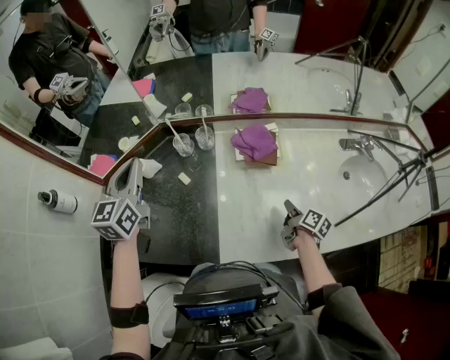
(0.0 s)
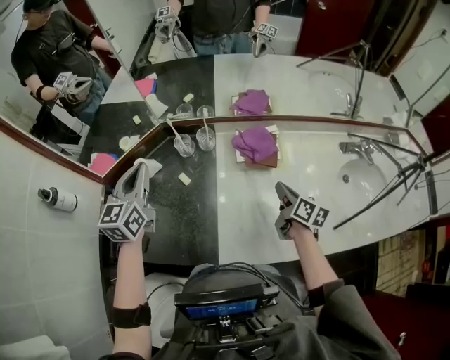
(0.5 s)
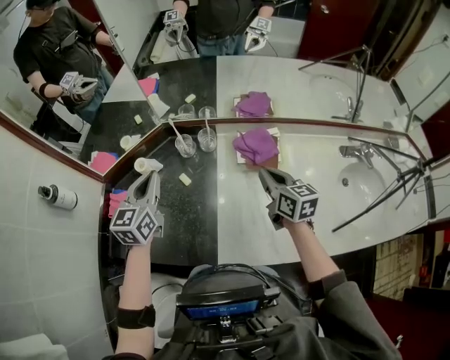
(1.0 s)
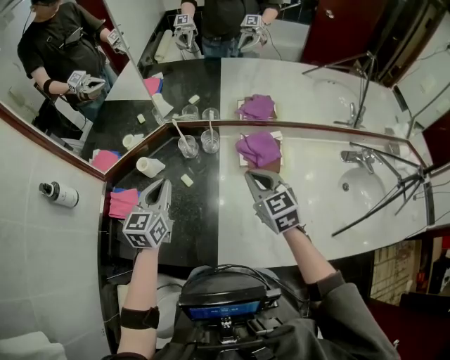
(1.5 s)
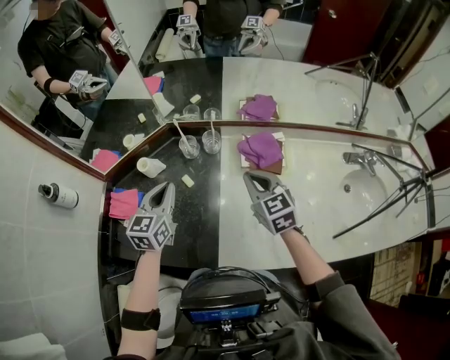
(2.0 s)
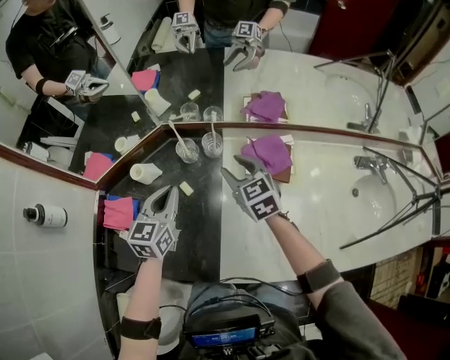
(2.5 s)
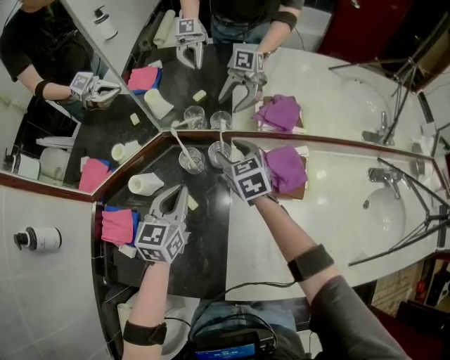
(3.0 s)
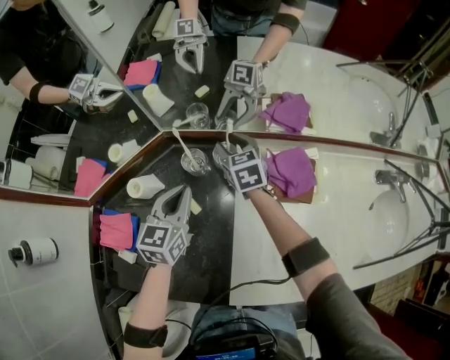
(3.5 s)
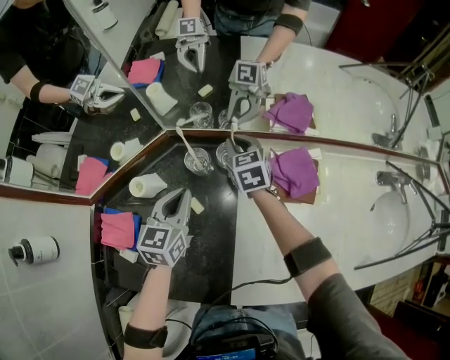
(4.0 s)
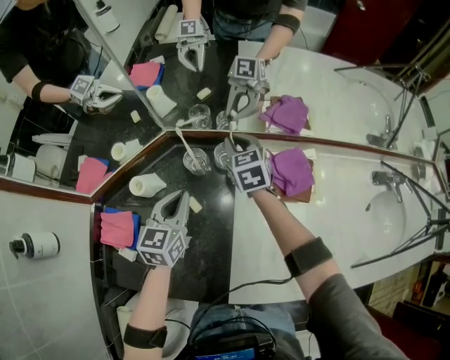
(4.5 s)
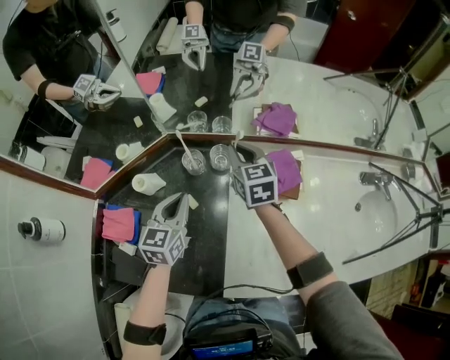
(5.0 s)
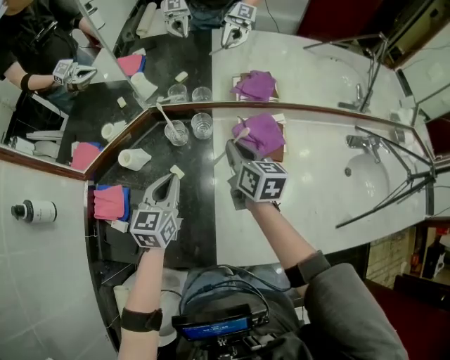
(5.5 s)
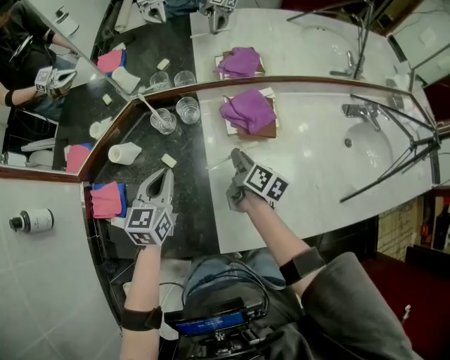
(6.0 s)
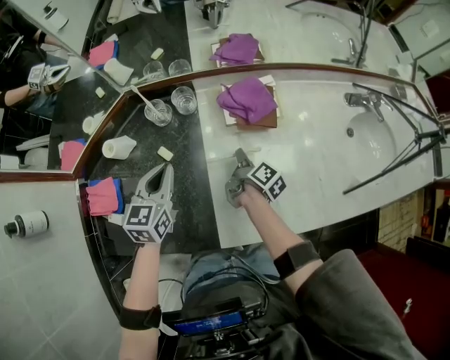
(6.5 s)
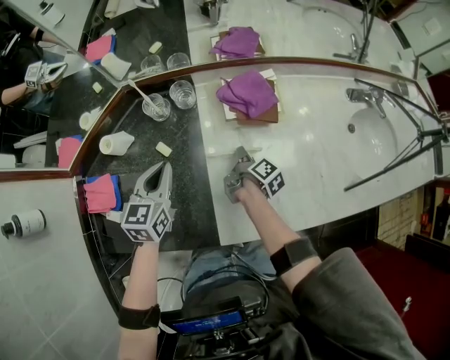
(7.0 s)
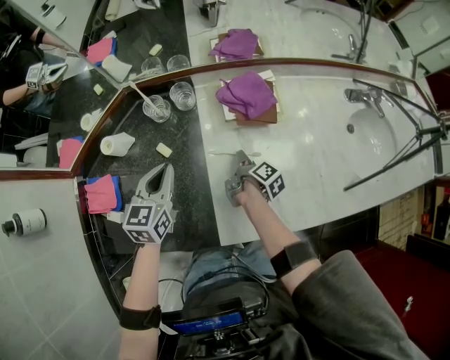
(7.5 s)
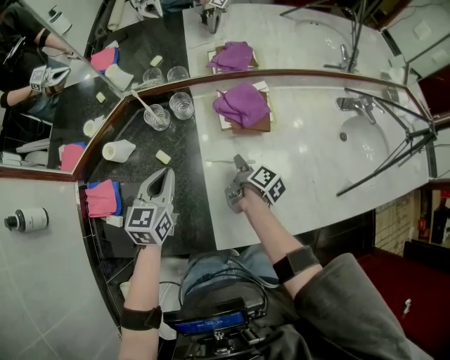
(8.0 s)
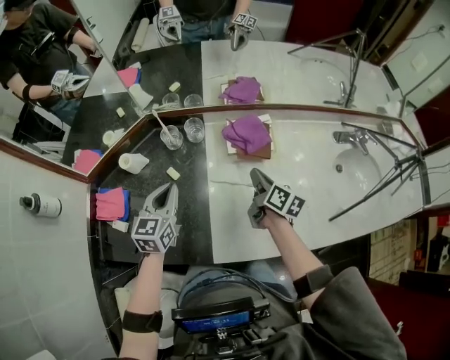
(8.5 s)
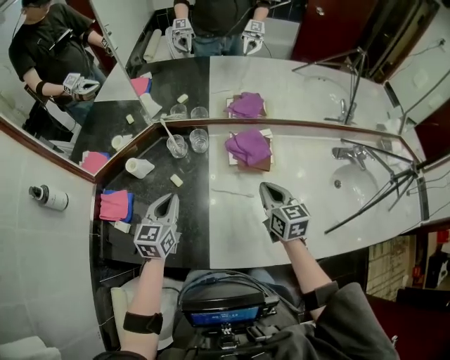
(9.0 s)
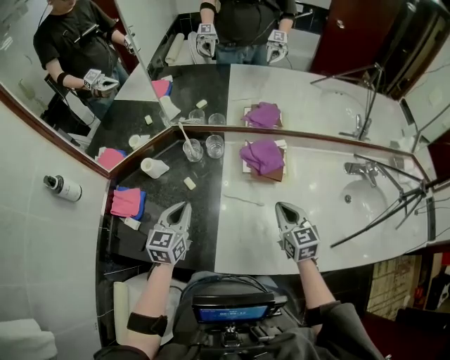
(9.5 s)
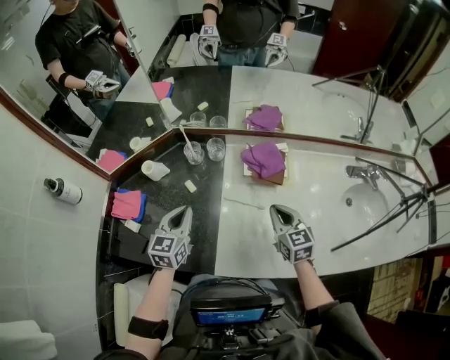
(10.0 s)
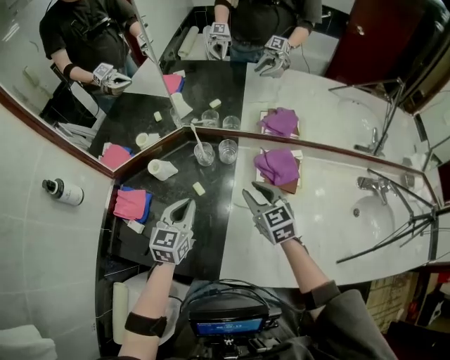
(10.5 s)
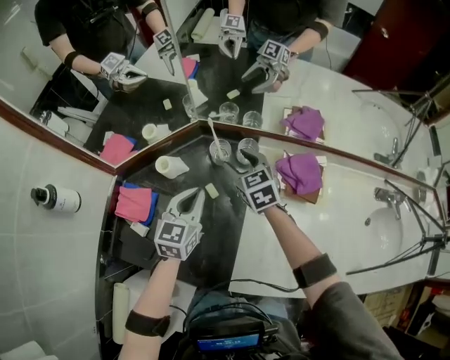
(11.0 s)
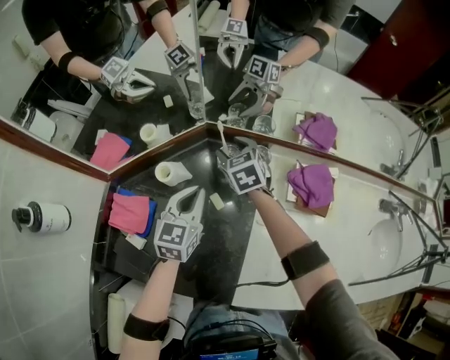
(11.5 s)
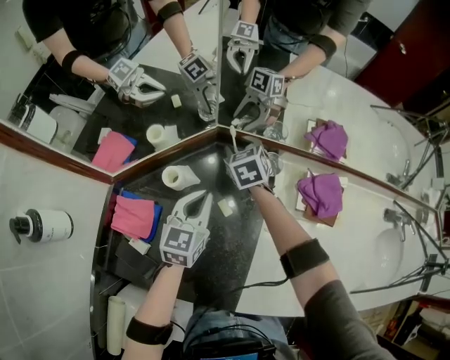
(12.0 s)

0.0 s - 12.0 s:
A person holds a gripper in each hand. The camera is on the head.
0.0 s - 2.0 s: The left gripper travels downward by approximately 10 cm, while the right gripper is displaced to the left, upward and forward by about 30 cm, and rotates around the line of its fingers by roughly 70 degrees, counterclockwise from behind.
2.0 s - 4.0 s: The right gripper travels forward and downward by roughly 30 cm, and opens, then closes once more, while the left gripper heads forward and downward, covering roughly 15 cm.
4.0 s - 6.0 s: The right gripper moves backward and to the right, roughly 25 cm, and rotates around the line of its fingers by about 70 degrees, clockwise from behind. Meanwhile the left gripper goes some 10 cm backward.
6.0 s - 8.0 s: The right gripper travels downward by about 10 cm, and turns by about 20 degrees.
8.0 s - 10.0 s: The left gripper goes approximately 5 cm backward. The right gripper goes about 15 cm upward, and rotates around the line of its fingers by approximately 80 degrees, counterclockwise from behind.
10.0 s - 12.0 s: The right gripper moves forward and to the left, some 50 cm, swivels roughly 20 degrees, and opens, while the left gripper shifts roughly 20 cm forward, downward and to the left.

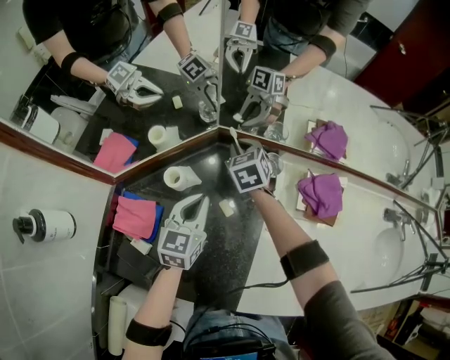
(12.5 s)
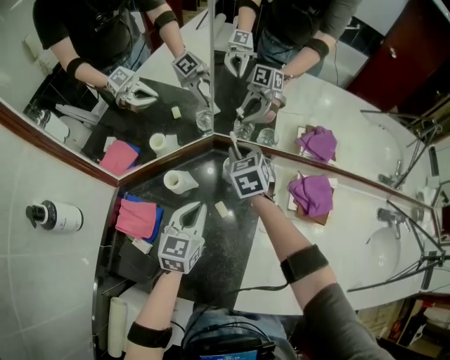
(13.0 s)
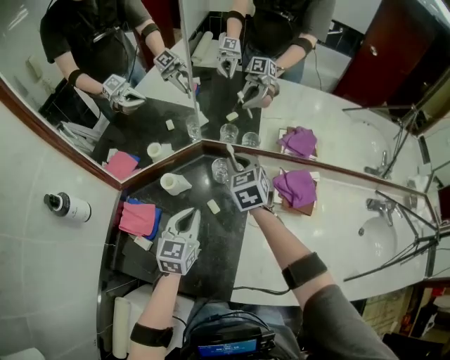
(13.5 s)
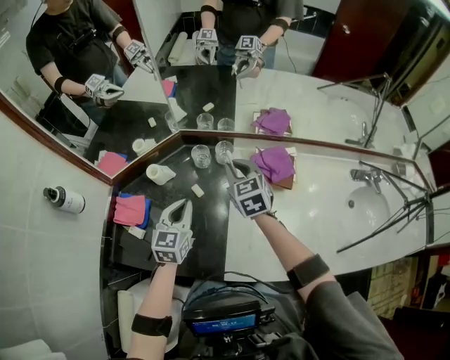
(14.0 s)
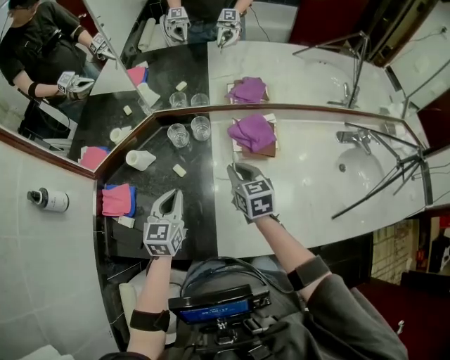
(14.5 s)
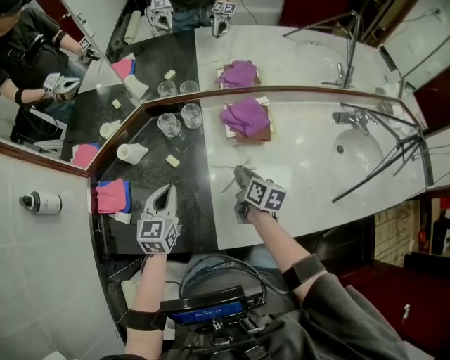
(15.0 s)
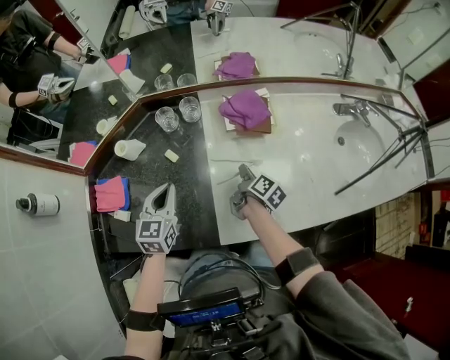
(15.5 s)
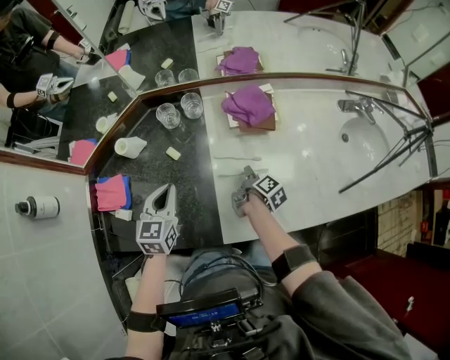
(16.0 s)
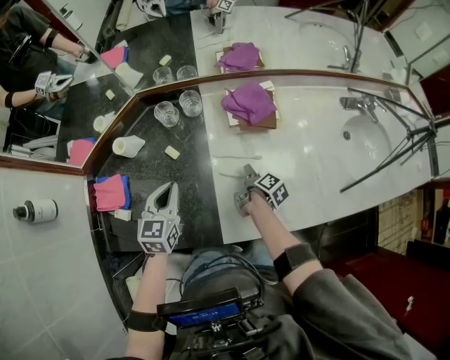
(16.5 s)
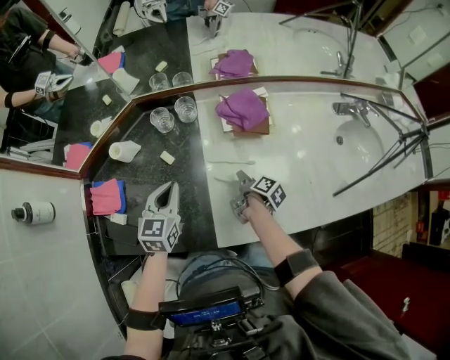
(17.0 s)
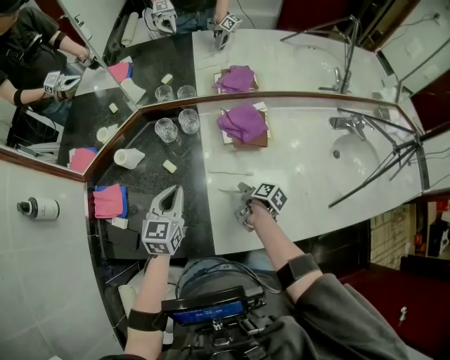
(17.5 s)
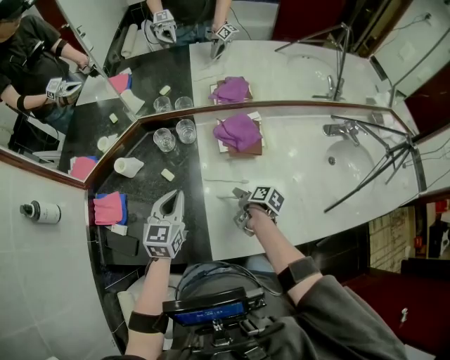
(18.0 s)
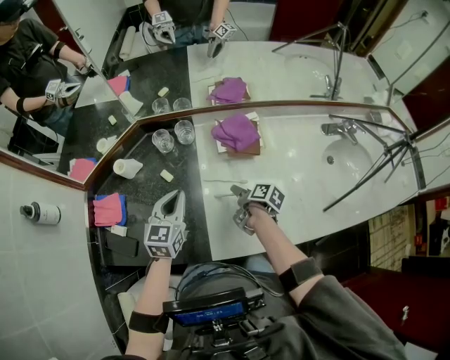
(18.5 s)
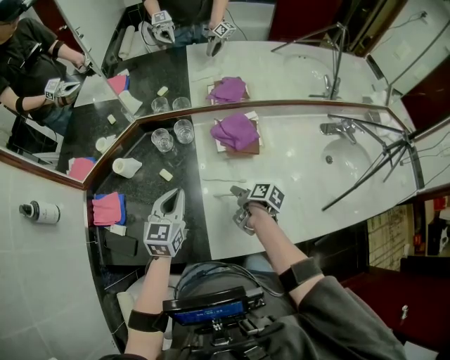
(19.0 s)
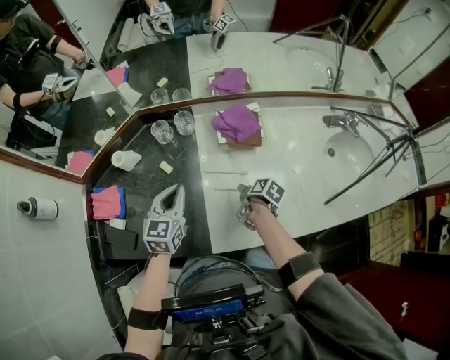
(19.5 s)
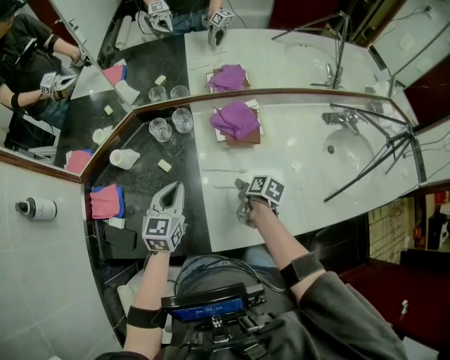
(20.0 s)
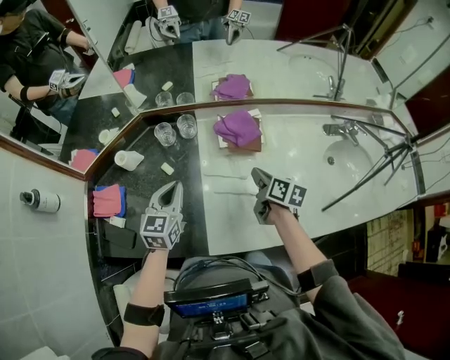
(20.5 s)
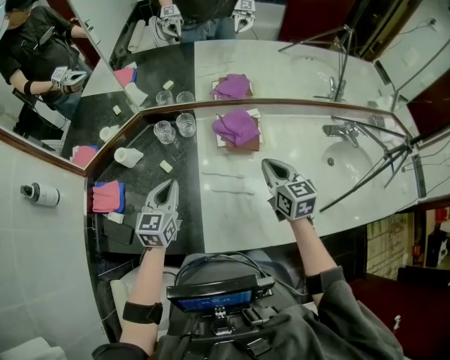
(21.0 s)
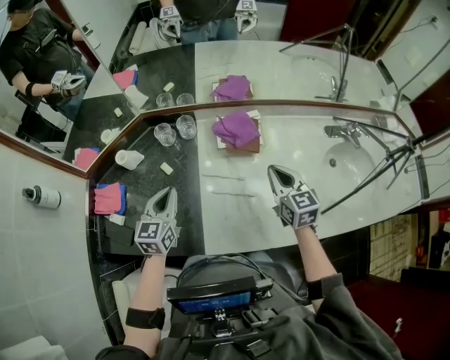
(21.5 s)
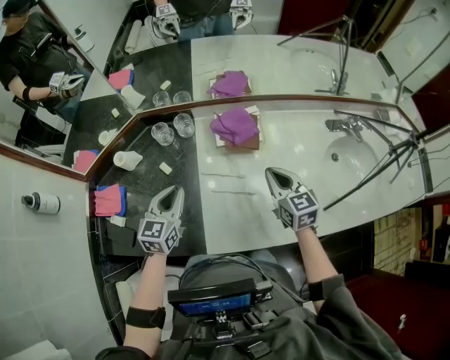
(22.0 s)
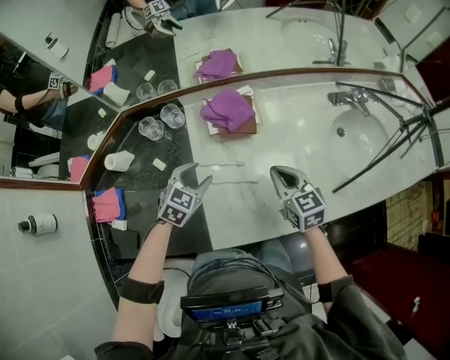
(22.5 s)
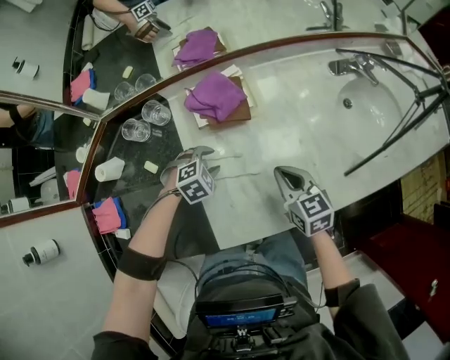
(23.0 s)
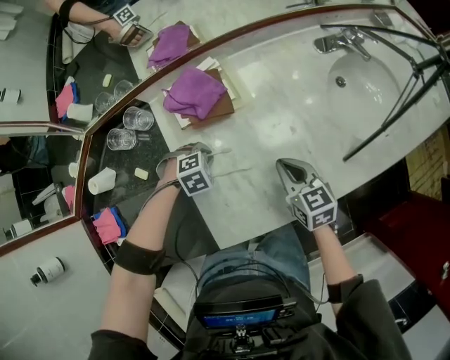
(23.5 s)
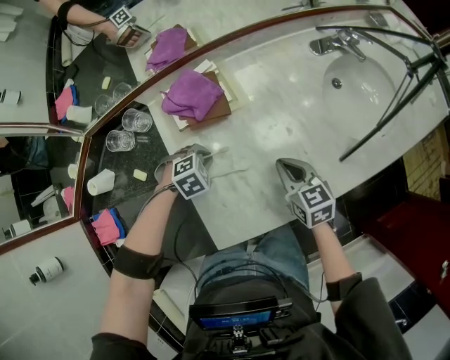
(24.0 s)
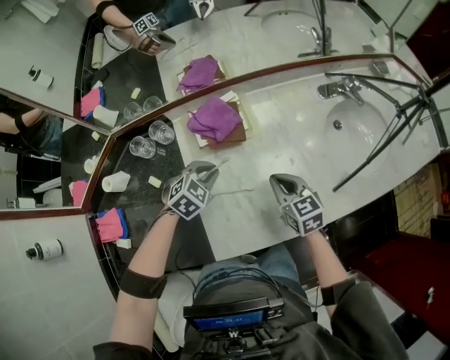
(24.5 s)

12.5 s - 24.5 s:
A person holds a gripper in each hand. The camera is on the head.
12.5 s - 14.5 s: The right gripper moves backward and to the right, roughly 35 cm, and changes its angle by some 30 degrees. Meanwhile the left gripper goes about 20 cm backward, to the right and upward.
14.5 s - 16.5 s: The right gripper heads downward, covering about 20 cm, rolls clockwise, seen from behind, by approximately 80 degrees, and opens.
16.5 s - 18.5 s: The left gripper goes roughly 5 cm to the right. The right gripper travels upward by roughly 10 cm, and swivels roughly 20 degrees.
18.5 s - 20.5 s: The right gripper shifts about 10 cm upward and to the right, changes its angle by approximately 30 degrees, and closes.
20.5 s - 22.5 s: The left gripper moves to the right and downward, some 15 cm, swivels roughly 40 degrees, and opens its fingers. Meanwhile the right gripper is displaced to the right by about 5 cm, moves about 10 cm upward and comes back, and turns by about 40 degrees.
22.5 s - 24.5 s: The left gripper moves approximately 15 cm downward and comes back, and closes its fingers.

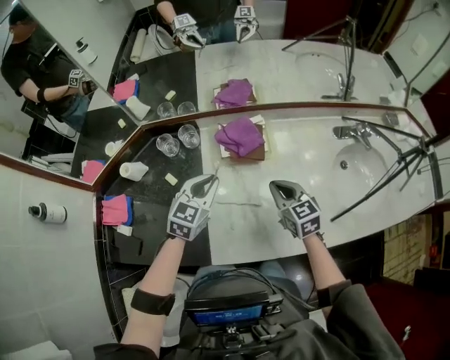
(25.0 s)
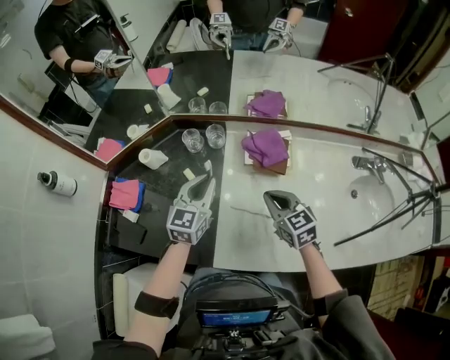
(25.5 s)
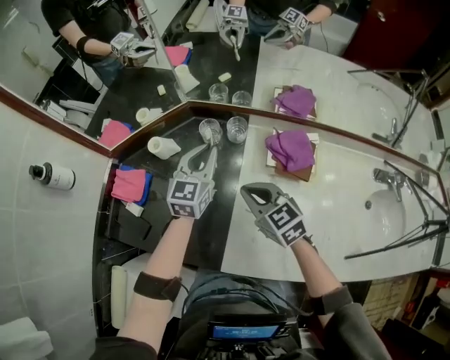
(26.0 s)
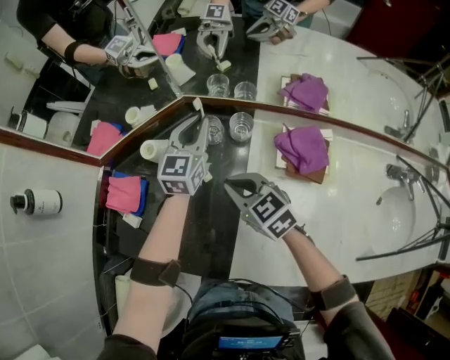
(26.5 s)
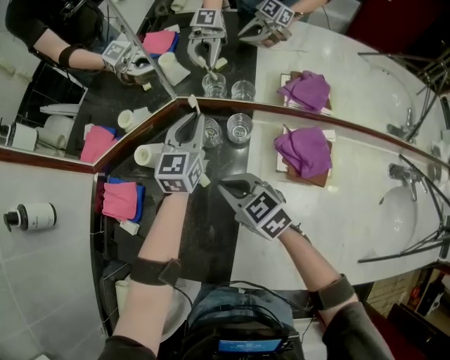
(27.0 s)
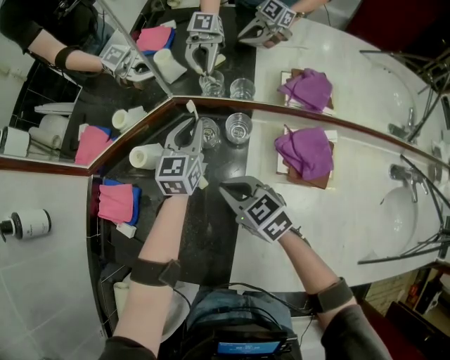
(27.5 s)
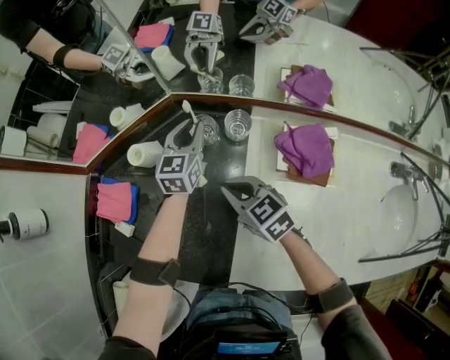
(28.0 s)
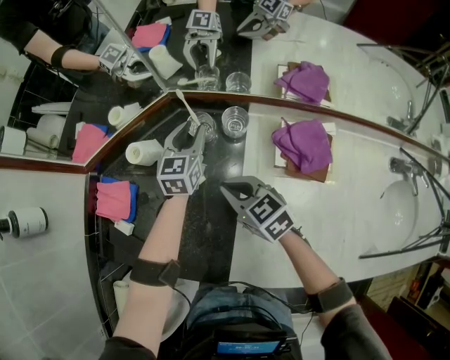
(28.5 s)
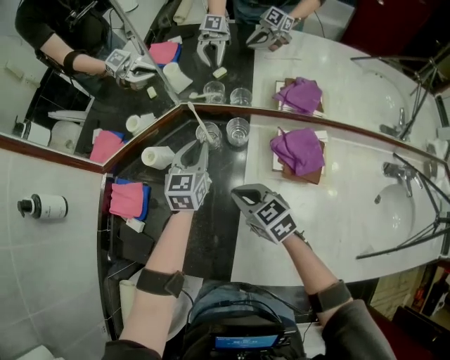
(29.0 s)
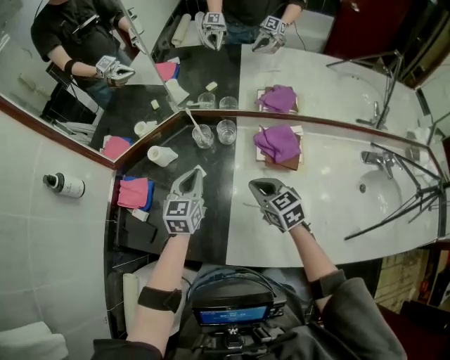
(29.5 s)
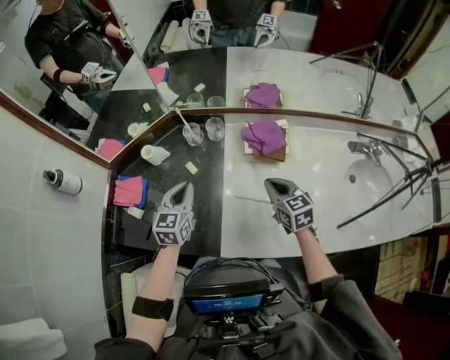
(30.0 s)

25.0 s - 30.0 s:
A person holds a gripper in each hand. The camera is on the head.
25.0 s - 27.5 s: The right gripper shifts by some 35 cm, and changes its angle by about 40 degrees. The left gripper ends up roughly 35 cm from where it was, and rotates roughly 40 degrees.
27.5 s - 30.0 s: The left gripper travels backward by about 25 cm, and opens and closes again; the right gripper heads backward, to the right and upward, covering about 25 cm, and swivels some 30 degrees.
